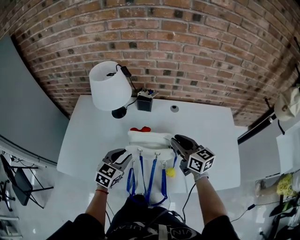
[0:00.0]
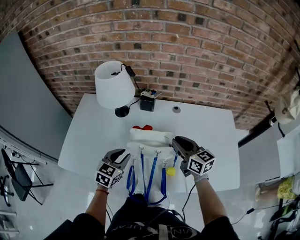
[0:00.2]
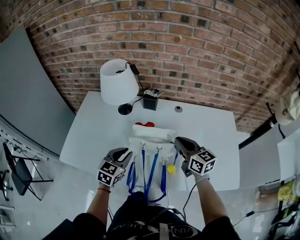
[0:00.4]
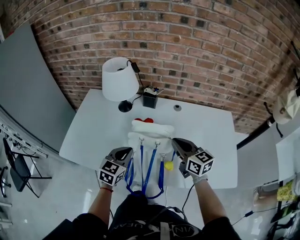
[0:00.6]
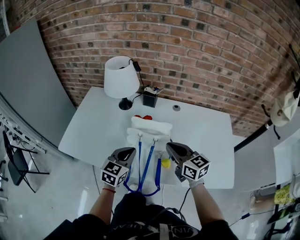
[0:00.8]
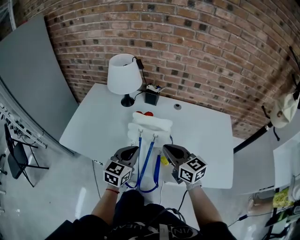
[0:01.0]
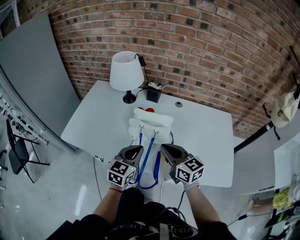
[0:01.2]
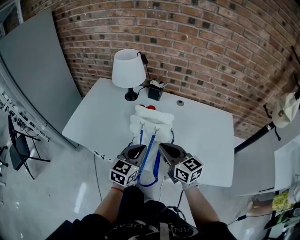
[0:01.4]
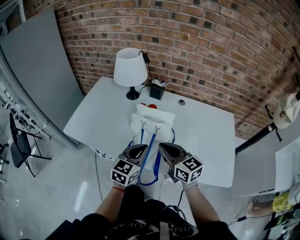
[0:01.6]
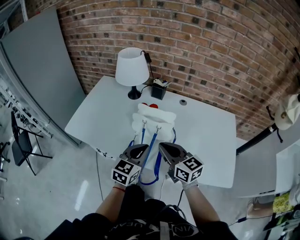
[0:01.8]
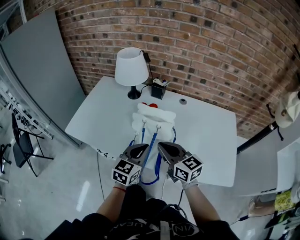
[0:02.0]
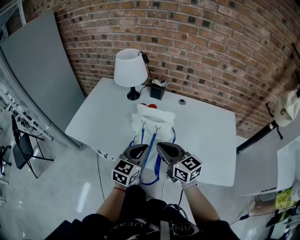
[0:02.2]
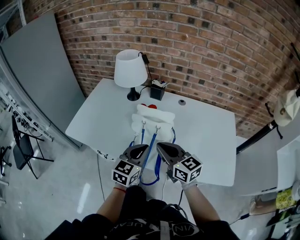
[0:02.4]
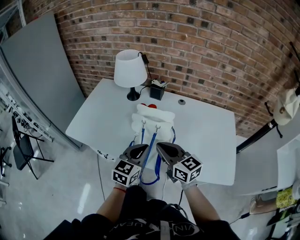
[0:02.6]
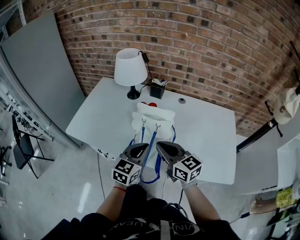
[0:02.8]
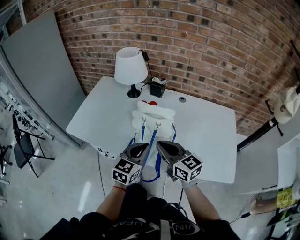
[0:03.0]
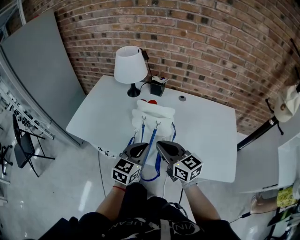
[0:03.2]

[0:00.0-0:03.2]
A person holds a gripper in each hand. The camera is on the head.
0:00.0 to 0:01.6: The left gripper moves backward, to the right and upward, some 15 cm, changes its angle by about 20 degrees, and closes; the right gripper shifts roughly 20 cm backward and to the left.
0:01.6 to 0:03.2: The grippers make only small movements.

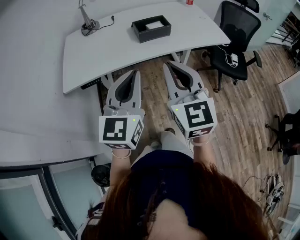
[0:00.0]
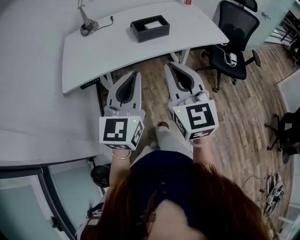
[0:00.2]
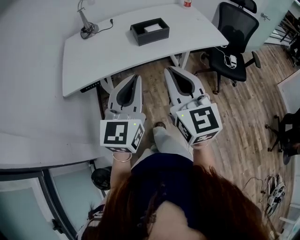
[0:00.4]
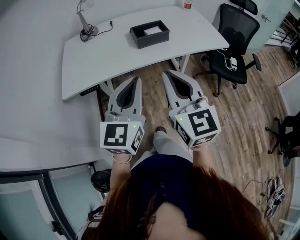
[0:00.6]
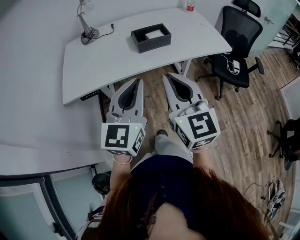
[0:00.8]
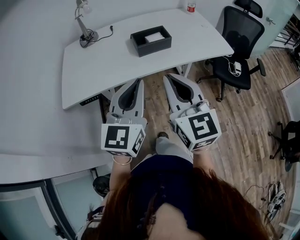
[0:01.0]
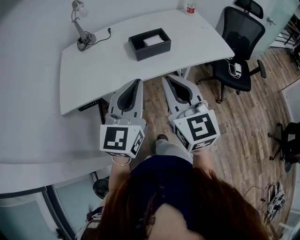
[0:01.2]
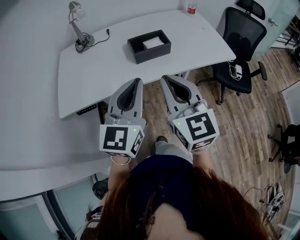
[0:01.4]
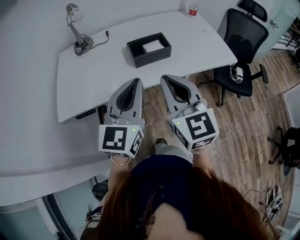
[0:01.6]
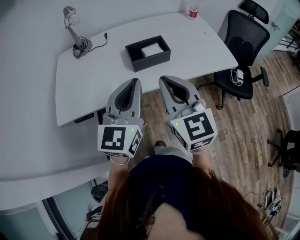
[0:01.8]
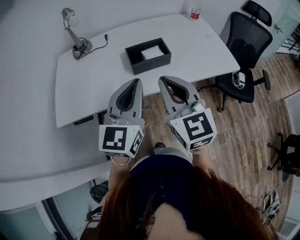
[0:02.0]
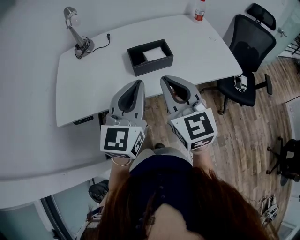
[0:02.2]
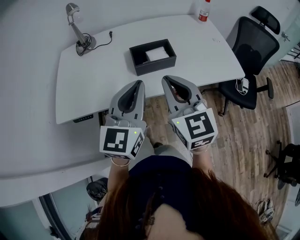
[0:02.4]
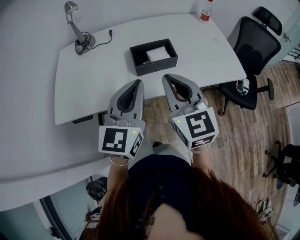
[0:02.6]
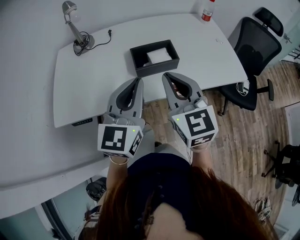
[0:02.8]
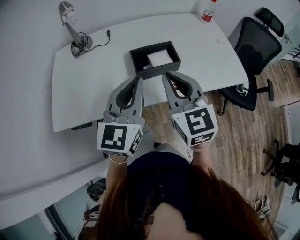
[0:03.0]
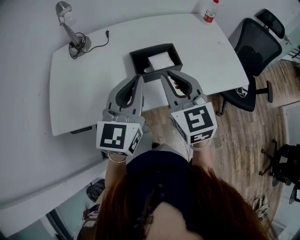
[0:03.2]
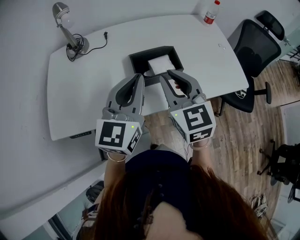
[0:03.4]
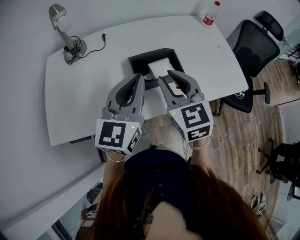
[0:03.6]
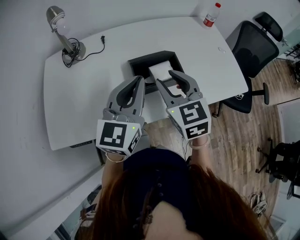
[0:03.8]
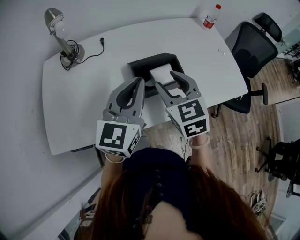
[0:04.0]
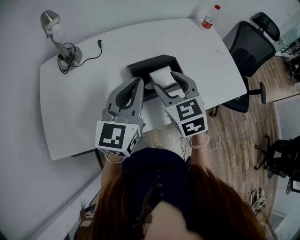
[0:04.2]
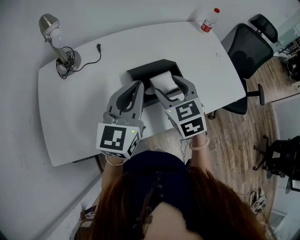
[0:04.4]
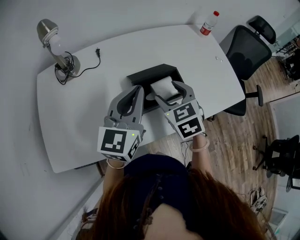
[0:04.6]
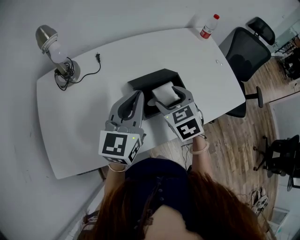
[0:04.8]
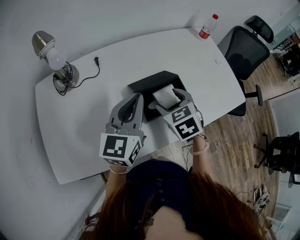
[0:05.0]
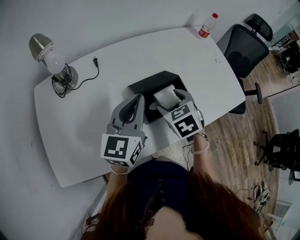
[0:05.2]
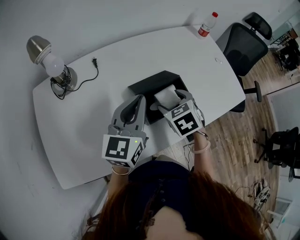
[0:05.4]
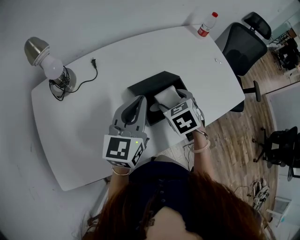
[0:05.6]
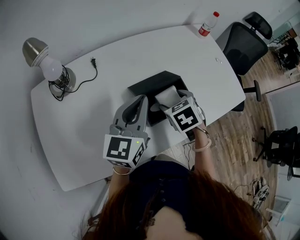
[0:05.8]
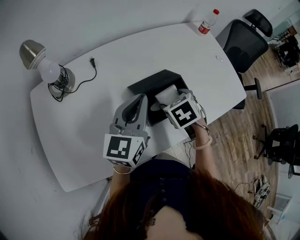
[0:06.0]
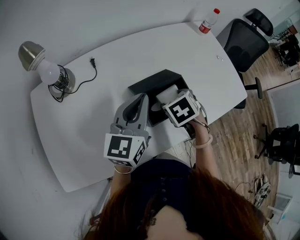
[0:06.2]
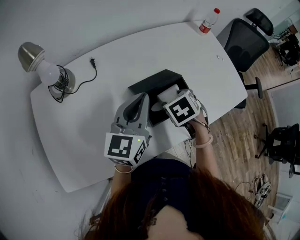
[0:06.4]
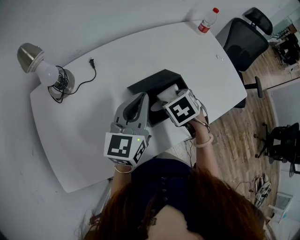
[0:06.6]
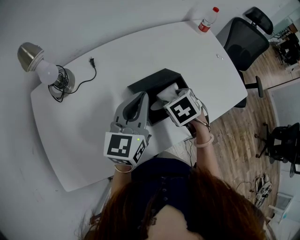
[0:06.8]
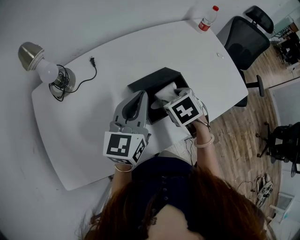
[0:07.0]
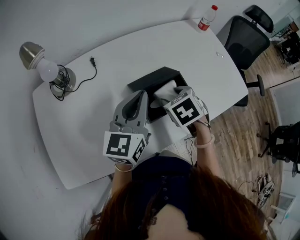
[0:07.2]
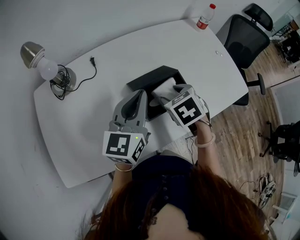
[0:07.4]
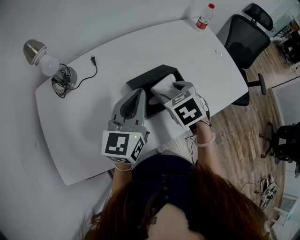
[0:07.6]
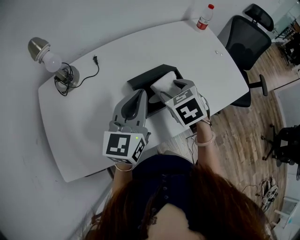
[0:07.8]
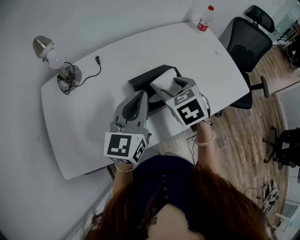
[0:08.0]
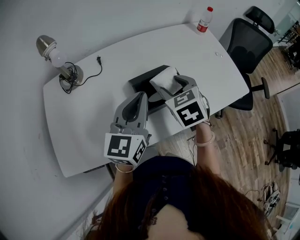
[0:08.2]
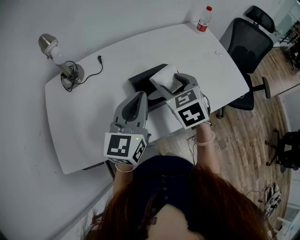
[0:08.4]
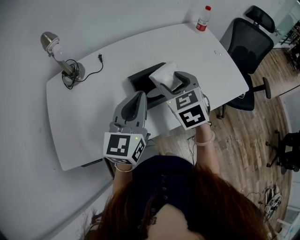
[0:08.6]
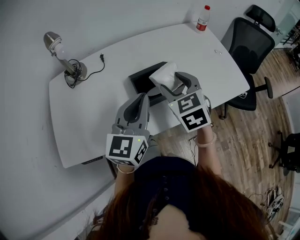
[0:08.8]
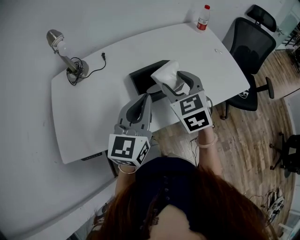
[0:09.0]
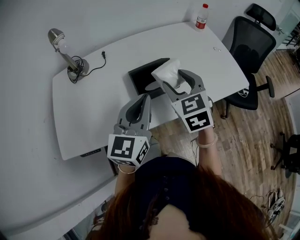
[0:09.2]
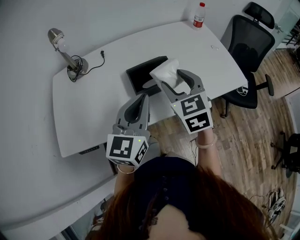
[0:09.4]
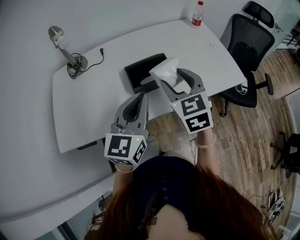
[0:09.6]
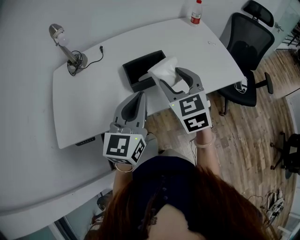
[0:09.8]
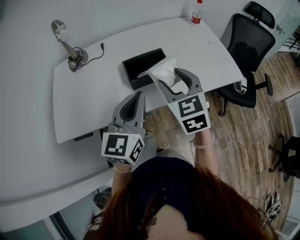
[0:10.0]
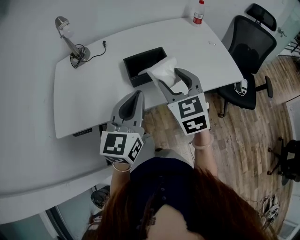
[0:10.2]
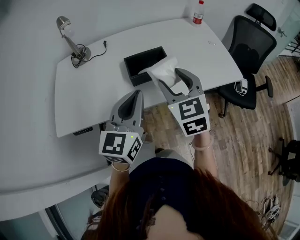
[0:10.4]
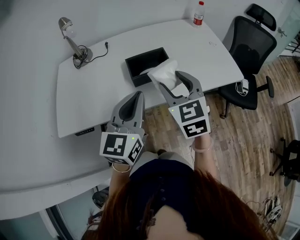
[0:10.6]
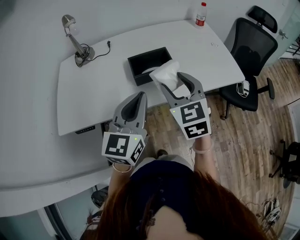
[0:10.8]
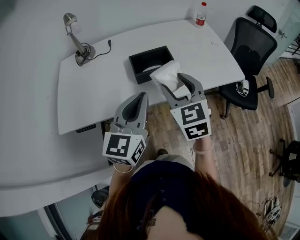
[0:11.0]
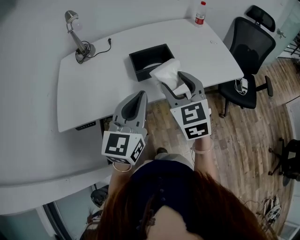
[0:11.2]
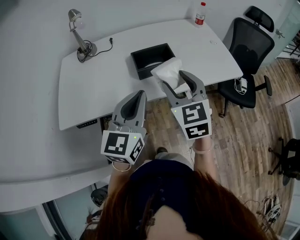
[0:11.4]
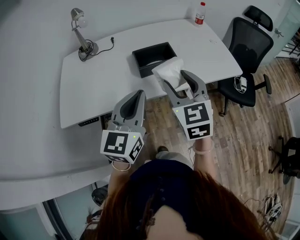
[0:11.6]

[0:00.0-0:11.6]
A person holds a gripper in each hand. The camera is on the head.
0:00.0 to 0:01.4: The grippers both shift forward by roughly 10 cm.
0:01.4 to 0:02.8: Both grippers move forward, approximately 15 cm.
0:02.8 to 0:04.4: The left gripper is displaced forward by approximately 15 cm; the right gripper is displaced forward and downward by roughly 20 cm, changes its angle by about 30 degrees, and opens.
0:04.4 to 0:05.8: The left gripper heads forward, covering about 5 cm. The right gripper heads downward, covering some 10 cm, and swivels about 30 degrees.
0:05.8 to 0:07.2: There are only small adjustments of the grippers.
0:07.2 to 0:08.8: The left gripper heads backward, covering about 10 cm; the right gripper shifts about 10 cm upward, and points its fingers roughly 30 degrees further upward.
0:08.8 to 0:10.2: The right gripper is displaced backward and to the right by about 10 cm; the left gripper shifts approximately 10 cm backward.
0:10.2 to 0:11.6: The grippers both shift backward by approximately 10 cm.

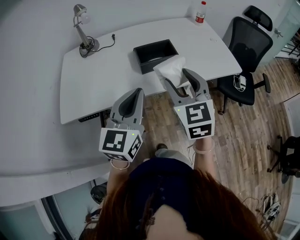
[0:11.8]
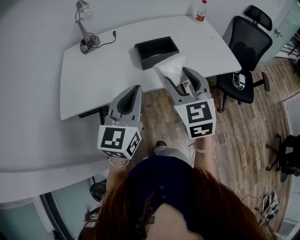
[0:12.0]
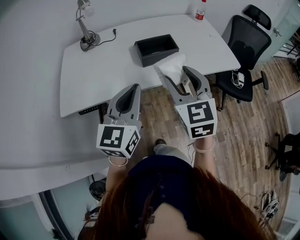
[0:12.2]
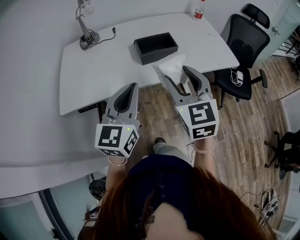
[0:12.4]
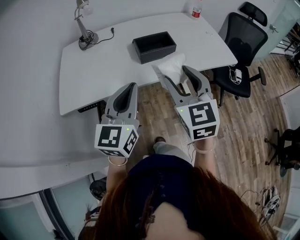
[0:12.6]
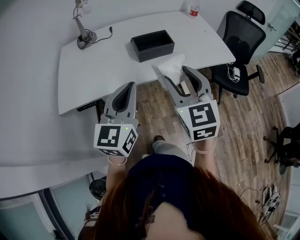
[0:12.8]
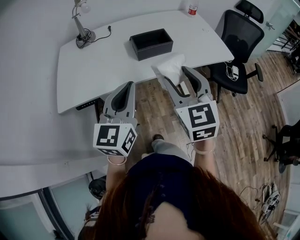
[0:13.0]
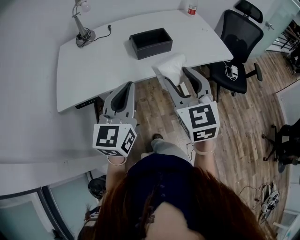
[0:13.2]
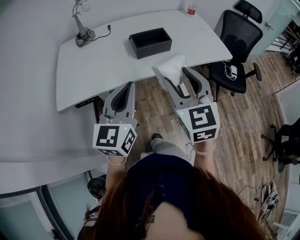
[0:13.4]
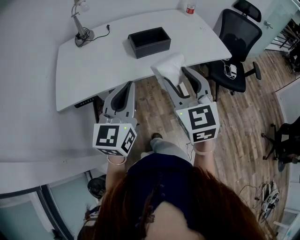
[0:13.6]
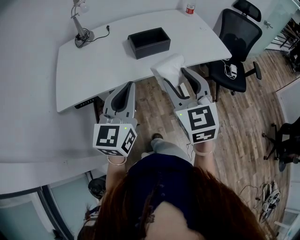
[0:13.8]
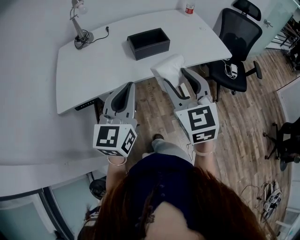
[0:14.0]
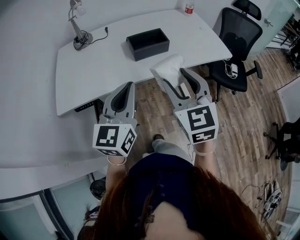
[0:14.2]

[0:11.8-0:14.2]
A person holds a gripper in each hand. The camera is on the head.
0:11.8 to 0:13.0: Both grippers travel together backward, approximately 5 cm.
0:13.0 to 0:14.2: The grippers move only a little.

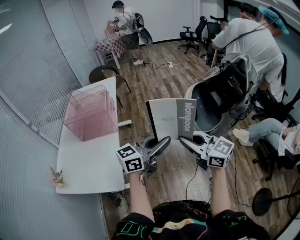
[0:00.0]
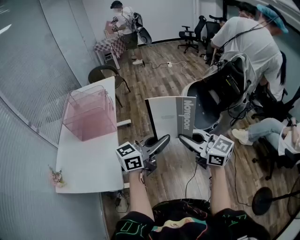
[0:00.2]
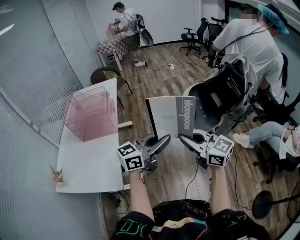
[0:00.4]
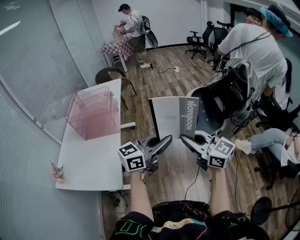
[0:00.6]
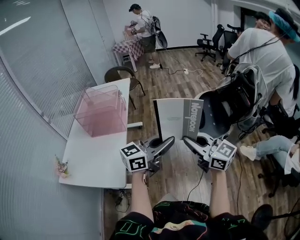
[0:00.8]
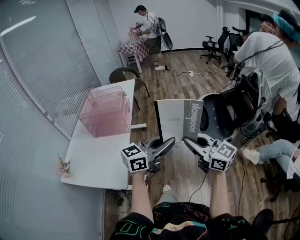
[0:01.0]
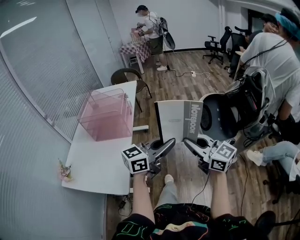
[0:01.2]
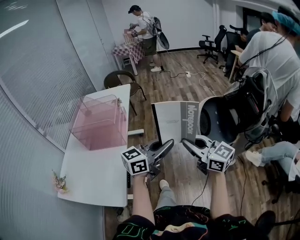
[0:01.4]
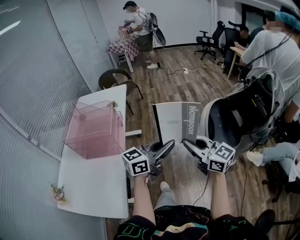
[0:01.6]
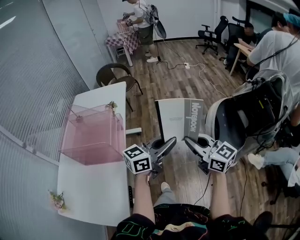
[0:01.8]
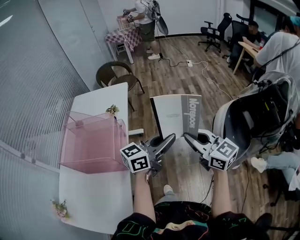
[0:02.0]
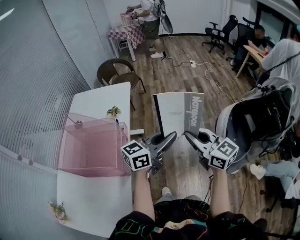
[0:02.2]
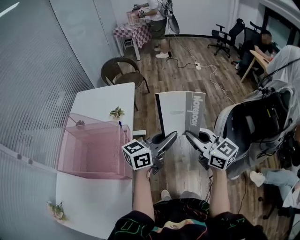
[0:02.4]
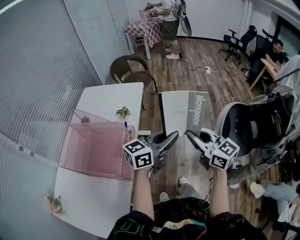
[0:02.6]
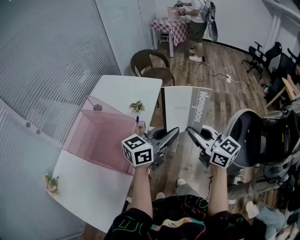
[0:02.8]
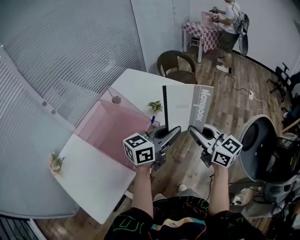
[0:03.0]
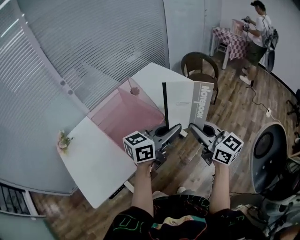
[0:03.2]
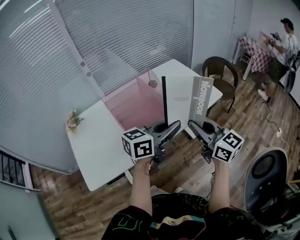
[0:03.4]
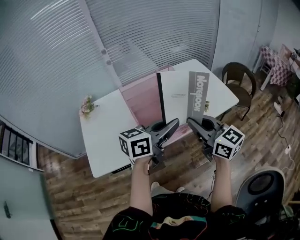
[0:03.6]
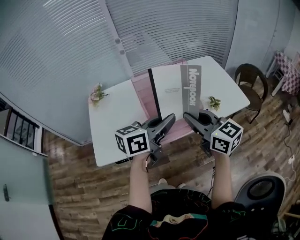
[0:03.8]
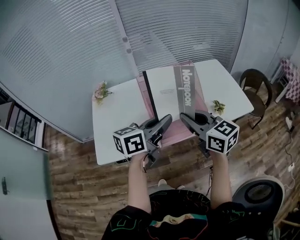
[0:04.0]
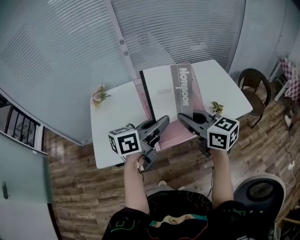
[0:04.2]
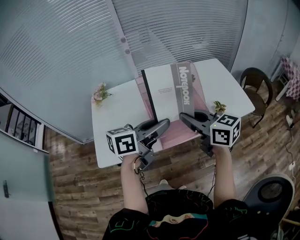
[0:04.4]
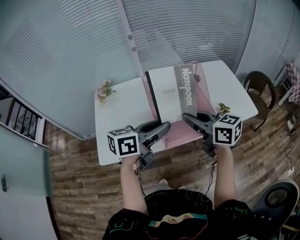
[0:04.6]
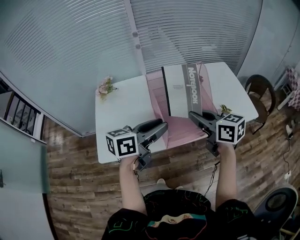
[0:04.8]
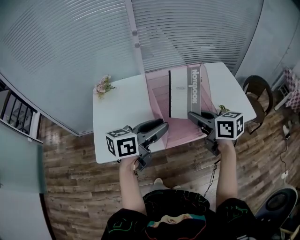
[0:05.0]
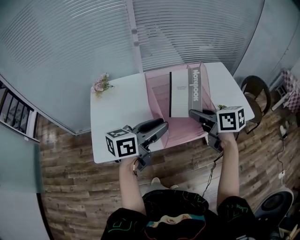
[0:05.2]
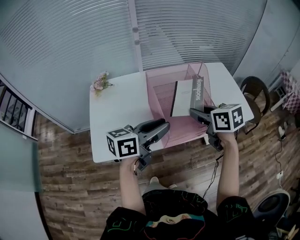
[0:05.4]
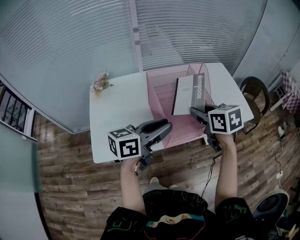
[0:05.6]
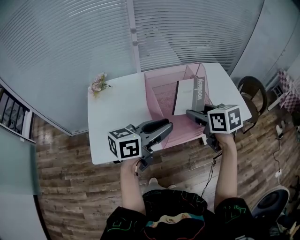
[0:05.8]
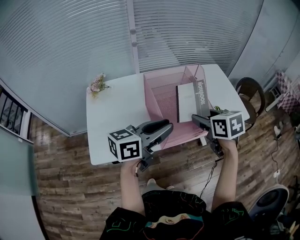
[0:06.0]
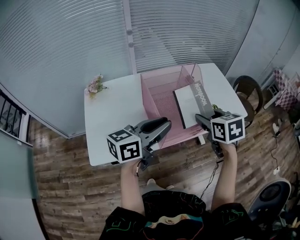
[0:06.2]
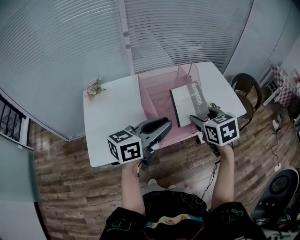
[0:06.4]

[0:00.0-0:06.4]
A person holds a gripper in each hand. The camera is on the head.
0:00.0 to 0:01.6: The left gripper is displaced forward, to the left and downward by roughly 25 cm, while the right gripper heads forward and to the left, covering roughly 25 cm.
0:01.6 to 0:03.2: The right gripper ends up approximately 40 cm from where it was, and swivels about 40 degrees. The left gripper shifts by roughly 35 cm, and changes its angle by about 50 degrees.
0:03.2 to 0:04.8: The left gripper changes place by some 25 cm, turns by some 40 degrees, and opens up. The right gripper ends up about 20 cm from where it was, and swivels roughly 40 degrees.
0:04.8 to 0:06.4: The right gripper swivels roughly 40 degrees, and opens its fingers.
